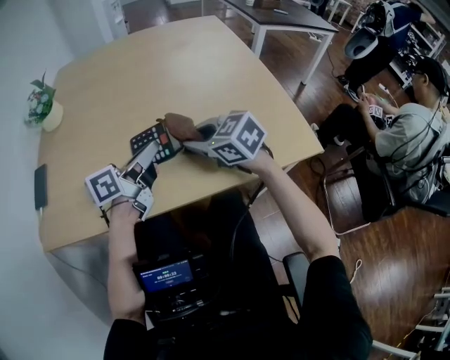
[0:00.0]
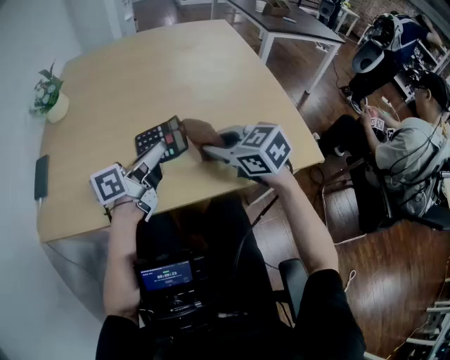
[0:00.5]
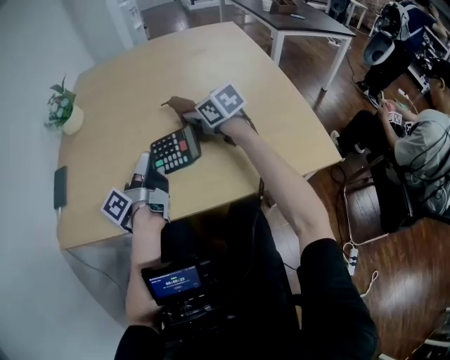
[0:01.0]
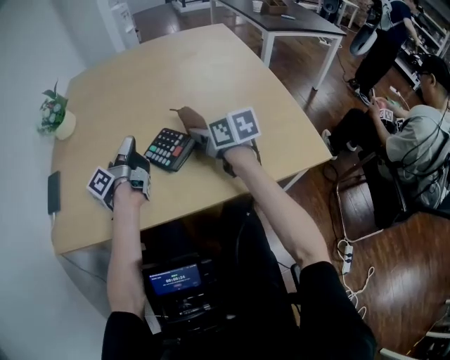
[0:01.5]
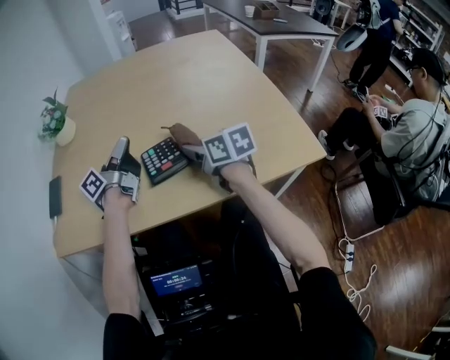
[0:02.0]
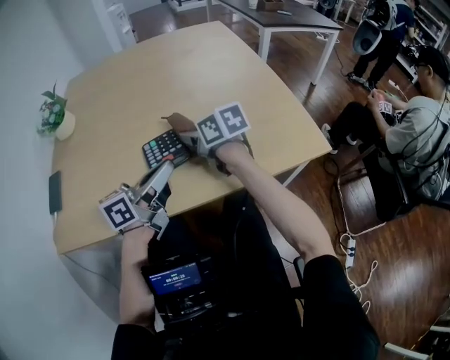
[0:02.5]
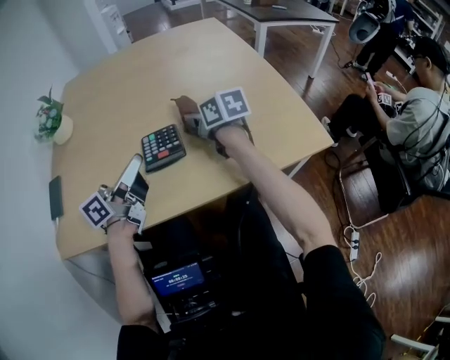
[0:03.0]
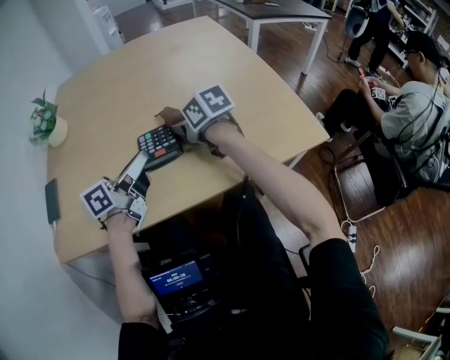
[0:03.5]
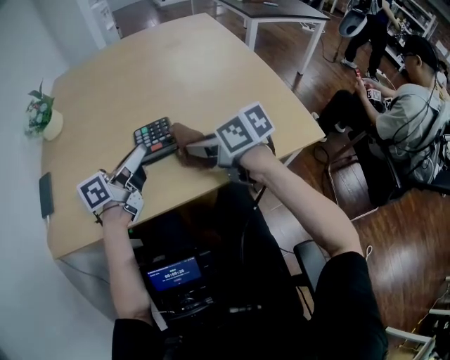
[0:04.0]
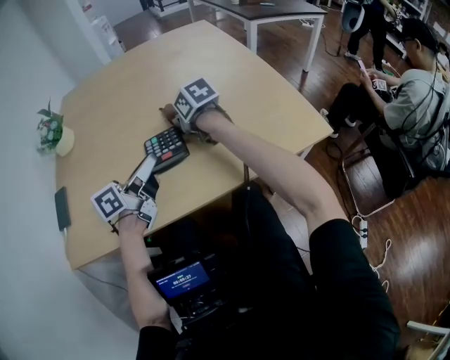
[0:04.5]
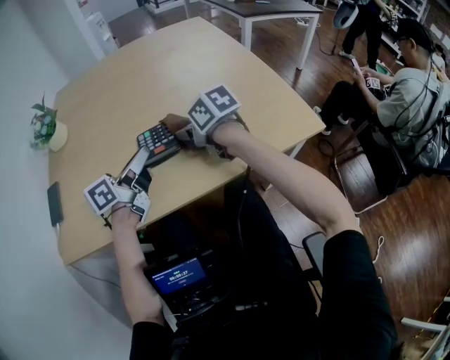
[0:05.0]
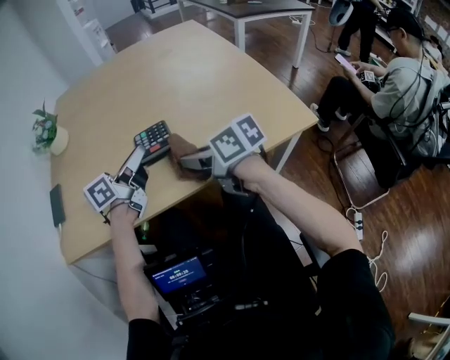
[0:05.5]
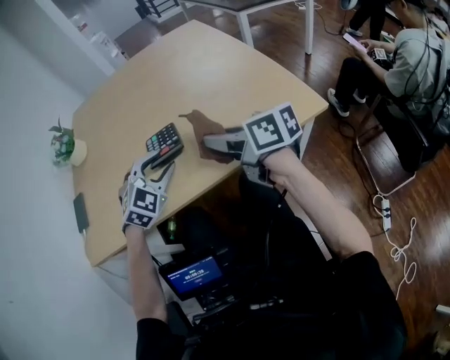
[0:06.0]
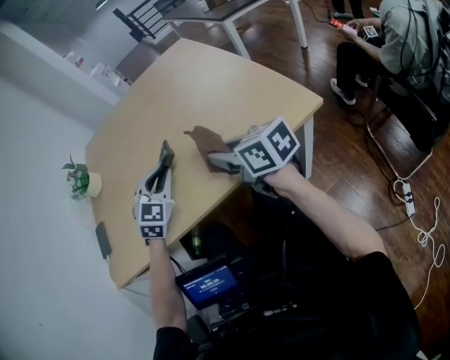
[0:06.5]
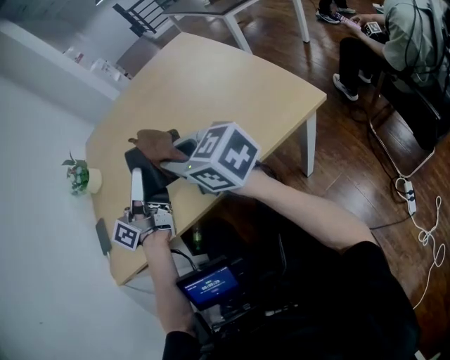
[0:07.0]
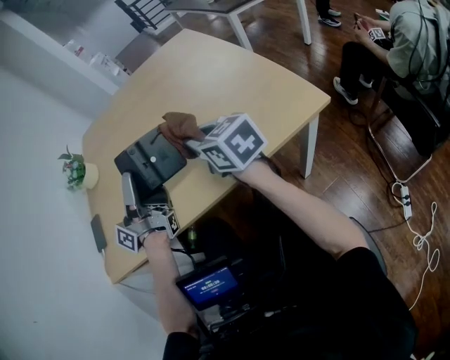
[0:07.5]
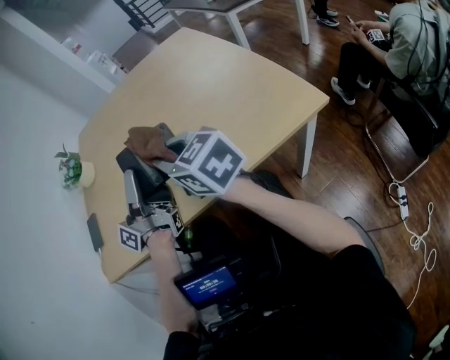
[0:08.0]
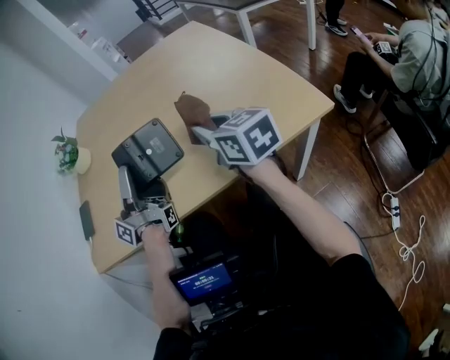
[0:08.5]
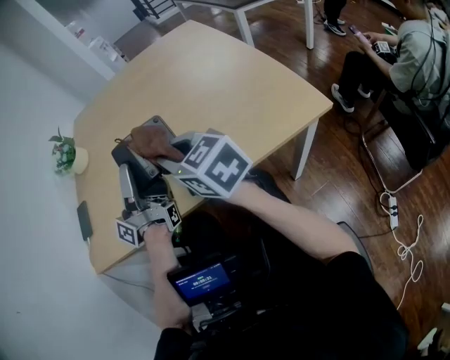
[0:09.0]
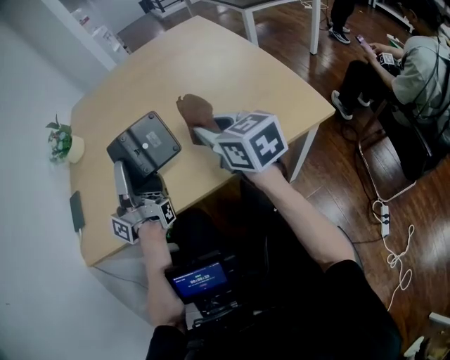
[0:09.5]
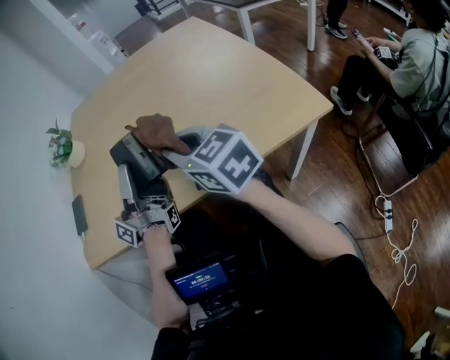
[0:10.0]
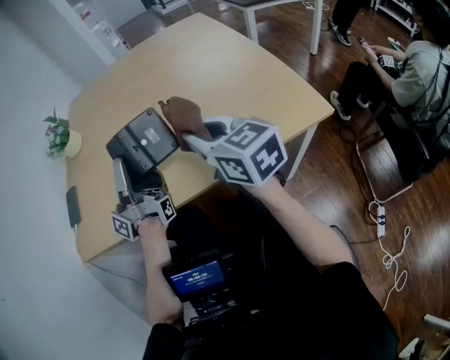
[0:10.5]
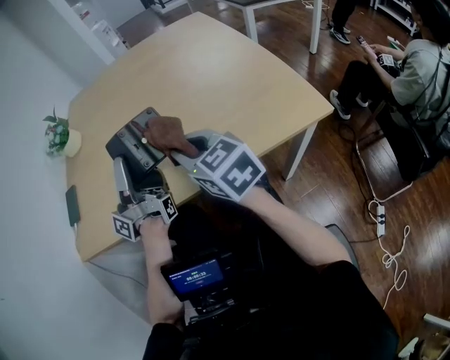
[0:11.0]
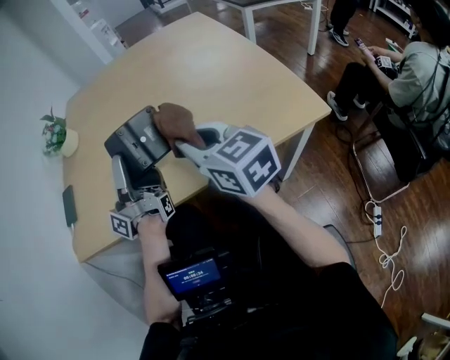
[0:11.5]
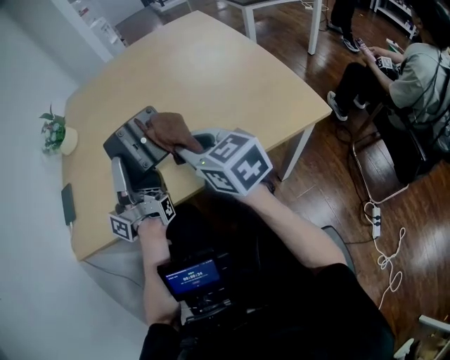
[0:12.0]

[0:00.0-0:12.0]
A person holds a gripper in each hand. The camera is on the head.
0:00.0 to 0:02.0: The left gripper heads forward and to the left, covering some 15 cm, and changes its angle by roughly 30 degrees, while the right gripper goes forward and returns, approximately 15 cm each way, and swivels about 40 degrees.
0:02.0 to 0:04.0: The right gripper travels backward by approximately 5 cm; the left gripper moves backward and to the right, approximately 10 cm, and turns by approximately 30 degrees.
0:04.0 to 0:06.0: The left gripper shifts by roughly 5 cm, rotates around the line of its fingers by some 90 degrees, clockwise from behind, and opens its fingers. The right gripper moves roughly 15 cm forward and comes back, and changes its angle by approximately 20 degrees.
0:06.0 to 0:08.0: The left gripper moves upward, about 10 cm, points its fingers about 70 degrees further upward, and closes its fingers. Meanwhile the right gripper moves left and right over roughly 10 cm, changing direction 2 times, and changes its angle by about 30 degrees.
0:08.0 to 0:10.0: The right gripper goes left and right, approximately 10 cm each way, reversing 3 times.

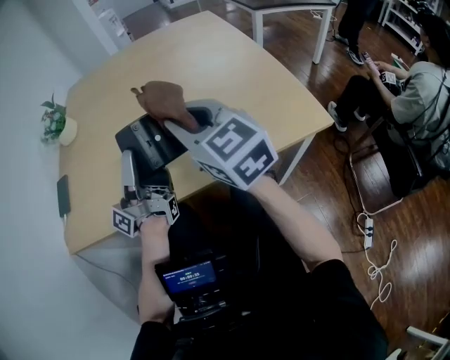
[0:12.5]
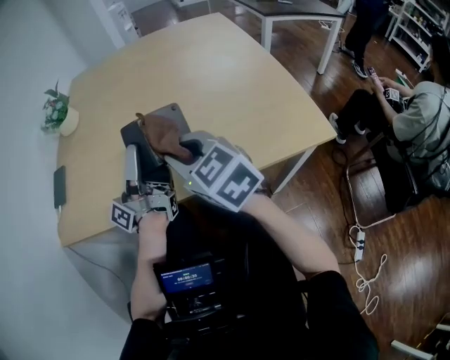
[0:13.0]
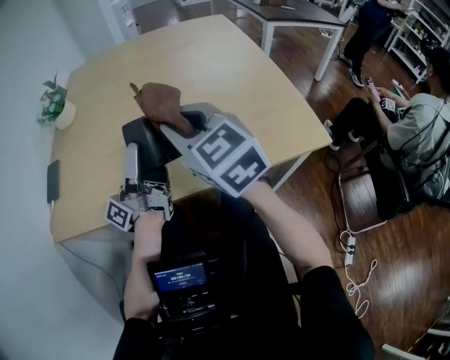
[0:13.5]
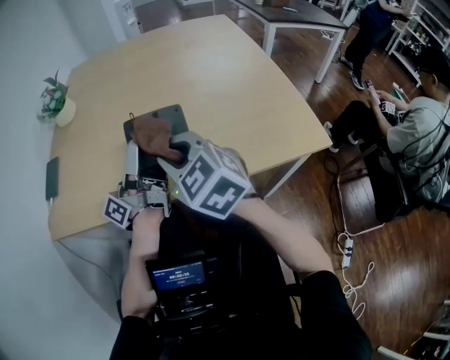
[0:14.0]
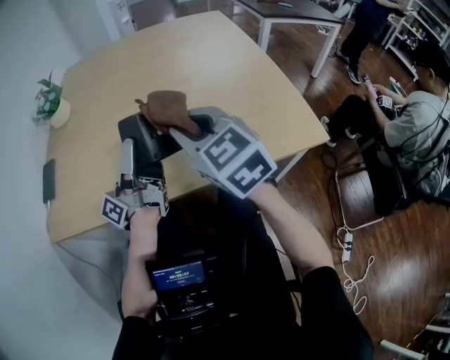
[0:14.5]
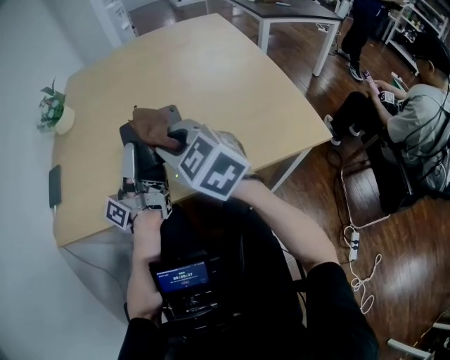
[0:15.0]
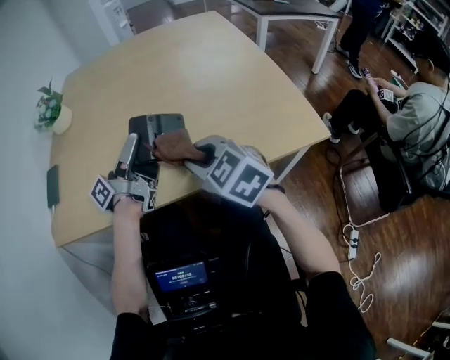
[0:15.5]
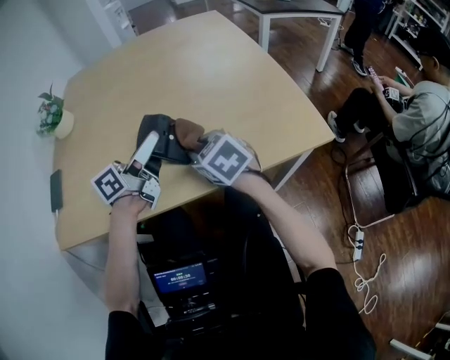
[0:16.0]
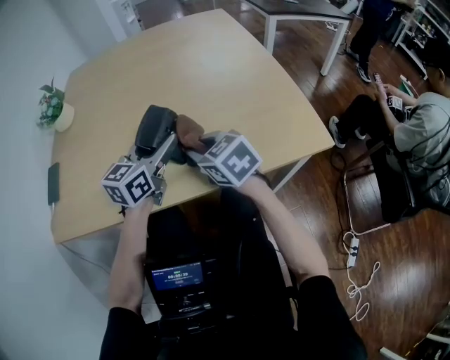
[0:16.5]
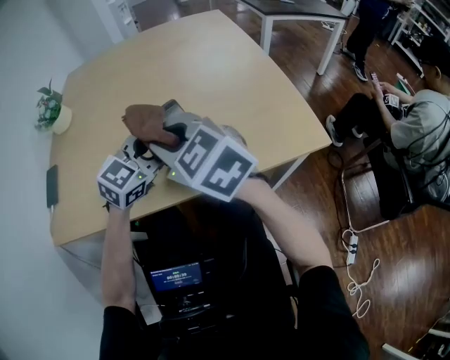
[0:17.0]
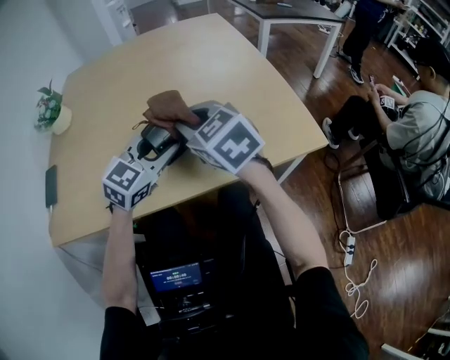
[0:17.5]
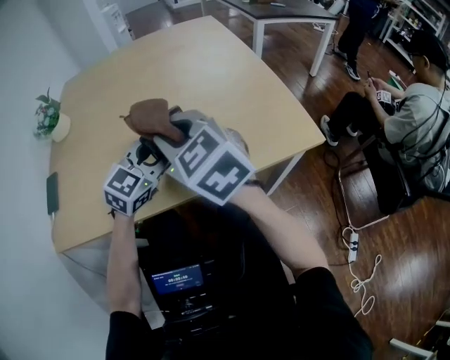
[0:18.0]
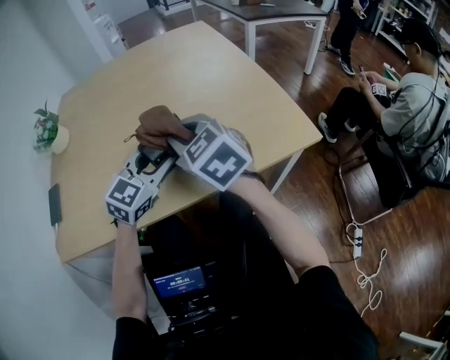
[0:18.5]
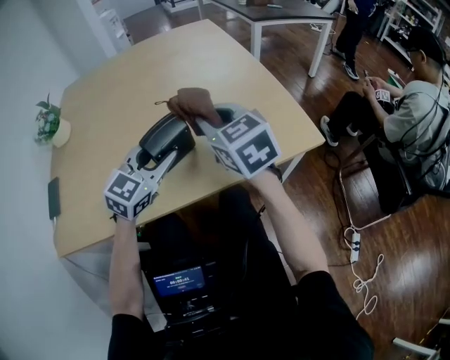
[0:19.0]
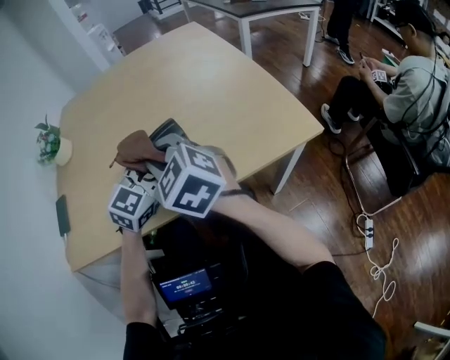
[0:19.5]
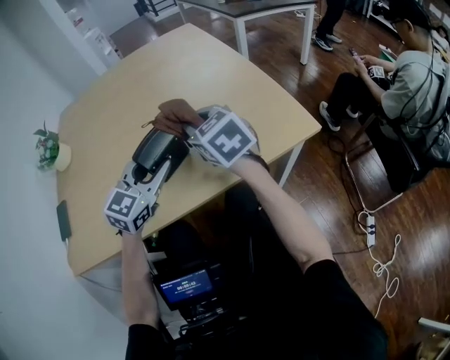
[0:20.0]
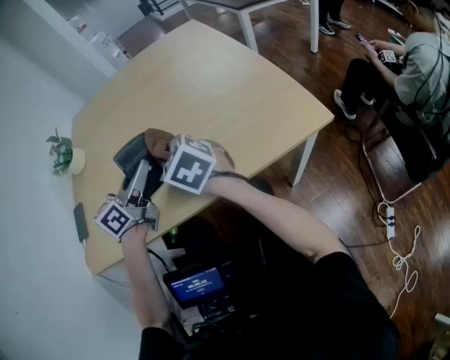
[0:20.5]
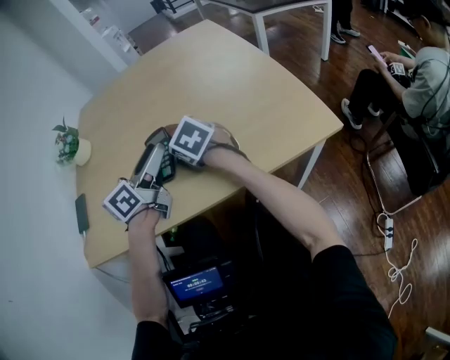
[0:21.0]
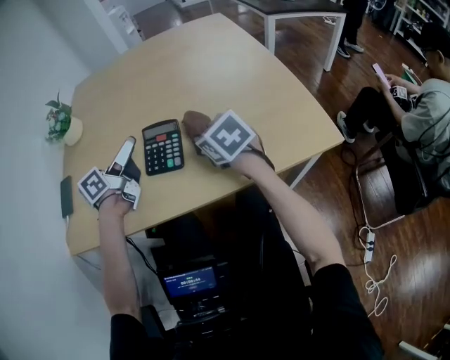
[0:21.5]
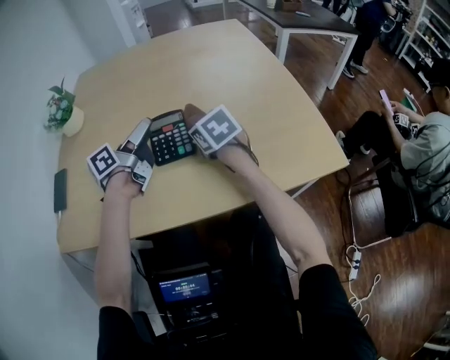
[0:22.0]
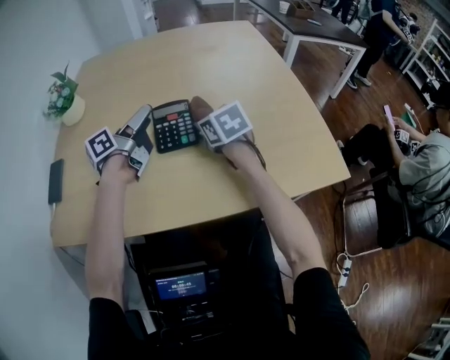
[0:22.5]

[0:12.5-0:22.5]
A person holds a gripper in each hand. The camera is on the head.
0:14.5 to 0:16.5: The left gripper is displaced to the right and downward by approximately 10 cm, tips its fingers downward by some 50 degrees, and opens, while the right gripper goes roughly 15 cm downward, and rotates roughly 20 degrees.
0:16.5 to 0:18.5: The left gripper swivels roughly 40 degrees, while the right gripper shifts roughly 10 cm upward.
0:18.5 to 0:20.5: The right gripper moves left and right over about 15 cm, changing direction 3 times, while the left gripper heads to the left, covering approximately 10 cm, and rolls counterclockwise, seen from behind, by approximately 50 degrees.
0:20.5 to 0:22.5: The right gripper is displaced forward and downward by approximately 15 cm, and swivels about 20 degrees, while the left gripper goes about 15 cm forward and to the left, swivels about 40 degrees, and opens its fingers.

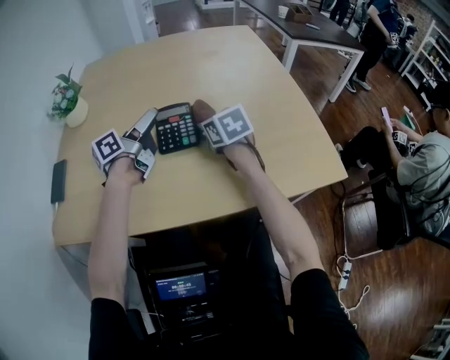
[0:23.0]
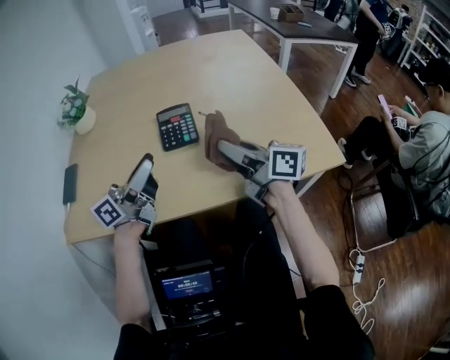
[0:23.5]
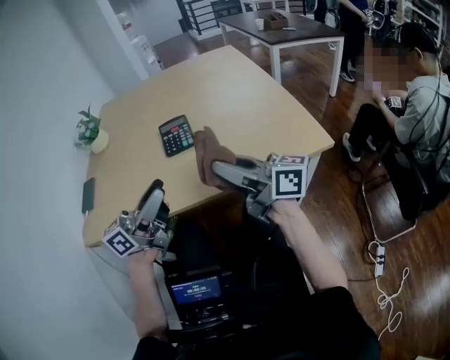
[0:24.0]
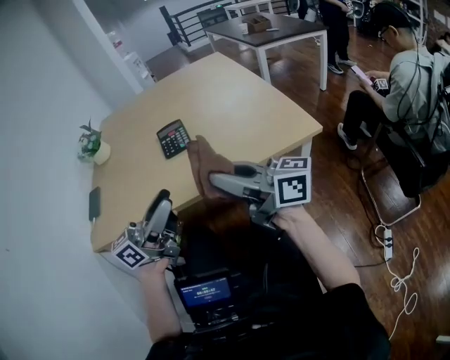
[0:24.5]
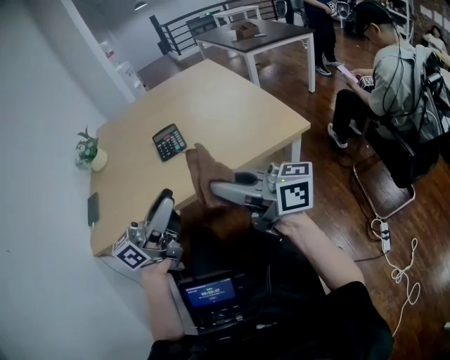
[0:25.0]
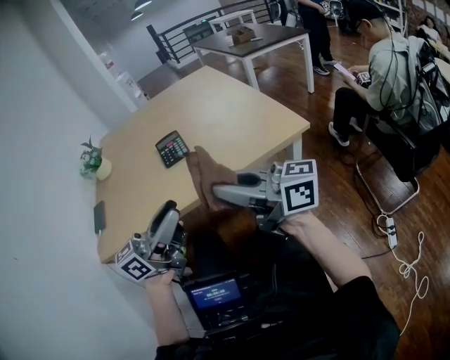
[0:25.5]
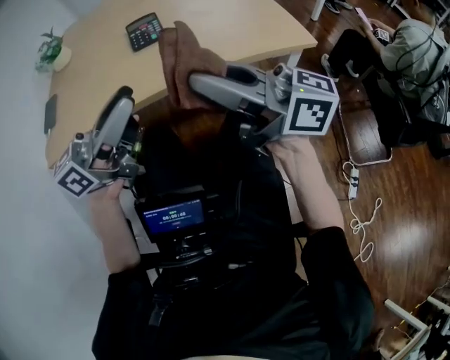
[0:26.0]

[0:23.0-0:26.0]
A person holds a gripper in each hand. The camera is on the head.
0:23.0 to 0:24.5: The right gripper goes roughly 40 cm backward and upward, and tilts its fingers some 60 degrees upward; the left gripper moves backward, some 35 cm, rotates some 40 degrees, and closes up.
0:24.5 to 0:26.0: The left gripper moves about 5 cm. The right gripper travels backward by roughly 5 cm.

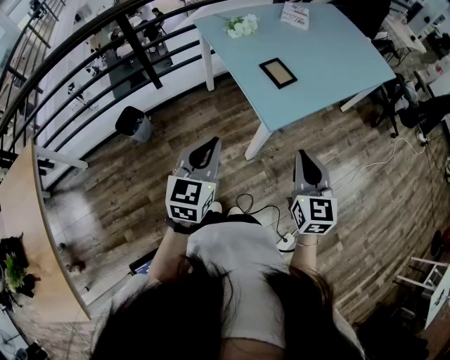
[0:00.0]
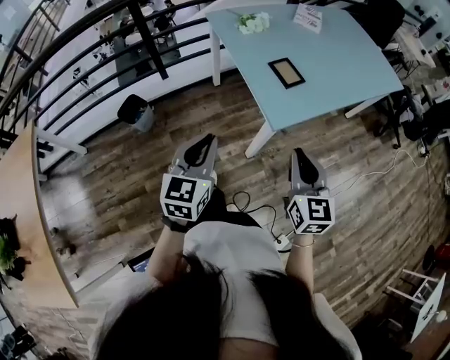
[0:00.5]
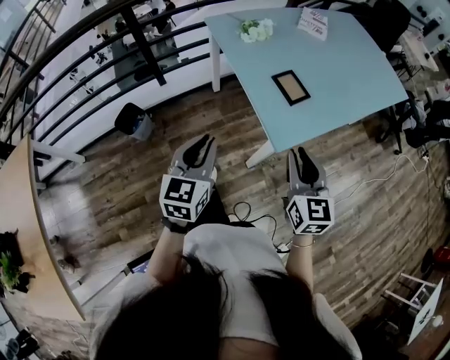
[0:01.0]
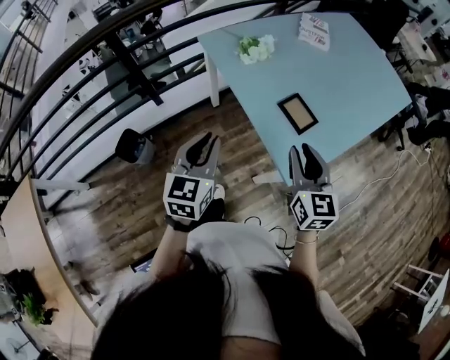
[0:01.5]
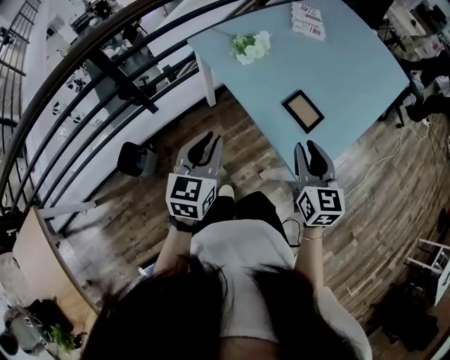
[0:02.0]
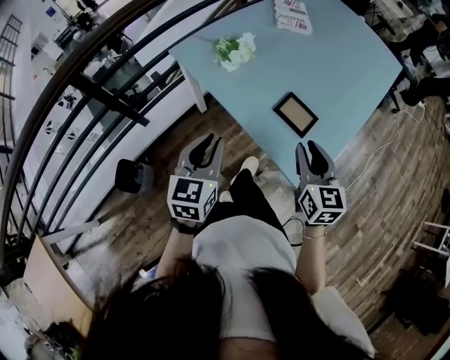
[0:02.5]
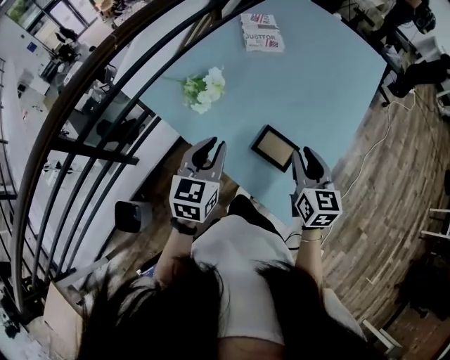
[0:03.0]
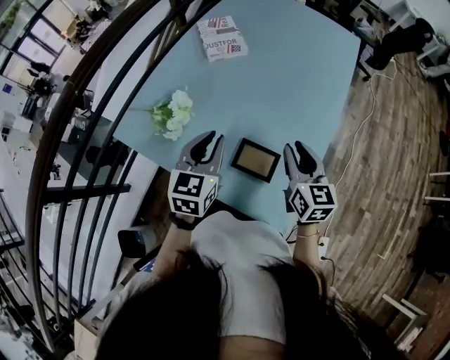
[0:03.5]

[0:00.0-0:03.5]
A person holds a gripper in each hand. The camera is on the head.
0:00.0 to 0:02.0: Both grippers move forward and to the left, roughly 30 cm.
0:02.0 to 0:03.5: Both grippers move forward and to the right, approximately 30 cm. The right gripper swivels about 20 degrees. Meanwhile the left gripper swivels approximately 30 degrees.
